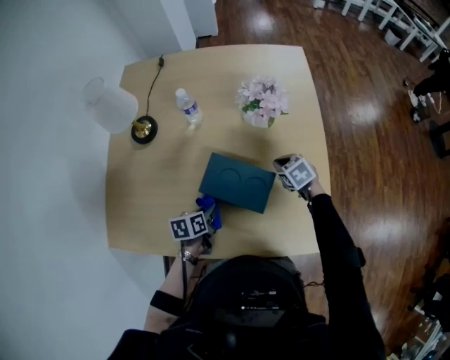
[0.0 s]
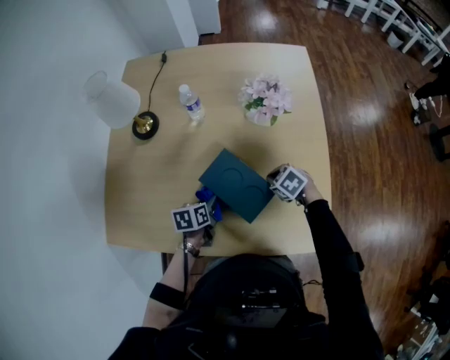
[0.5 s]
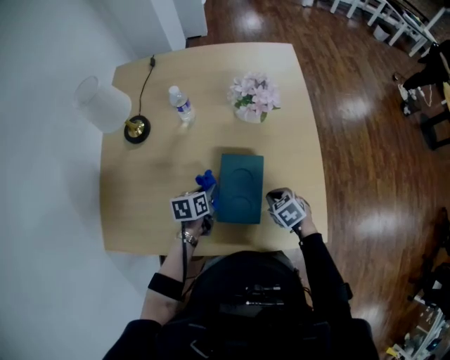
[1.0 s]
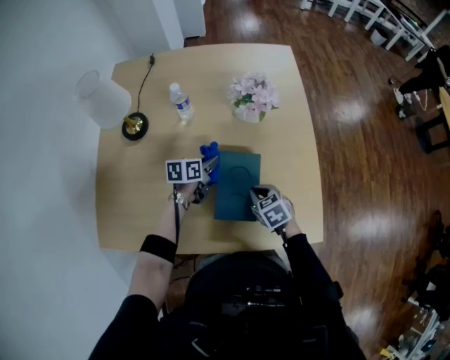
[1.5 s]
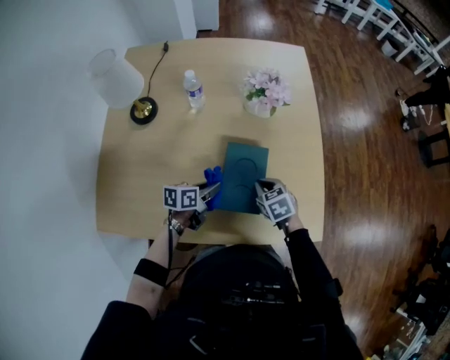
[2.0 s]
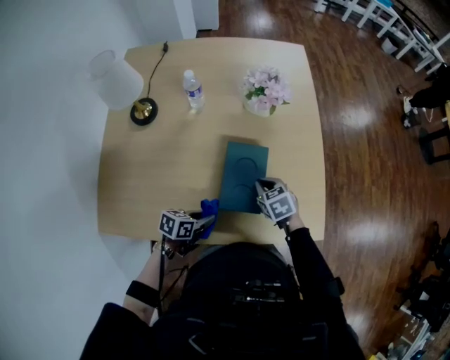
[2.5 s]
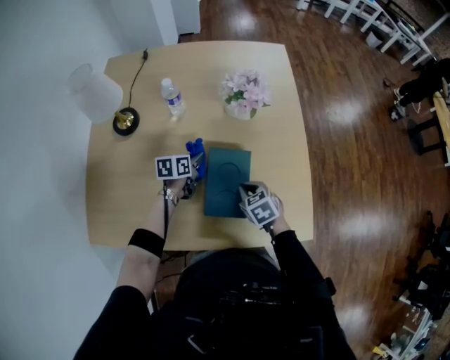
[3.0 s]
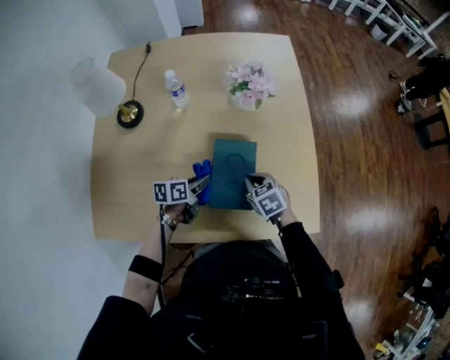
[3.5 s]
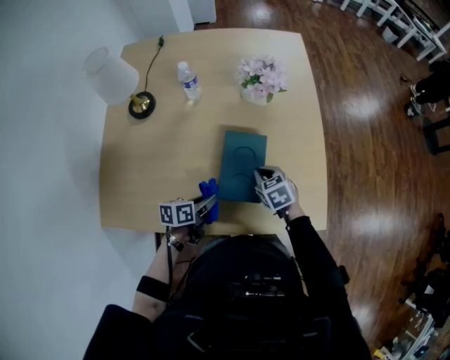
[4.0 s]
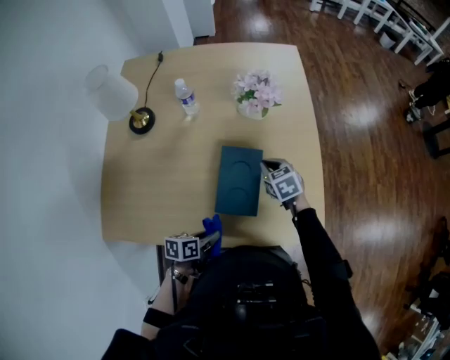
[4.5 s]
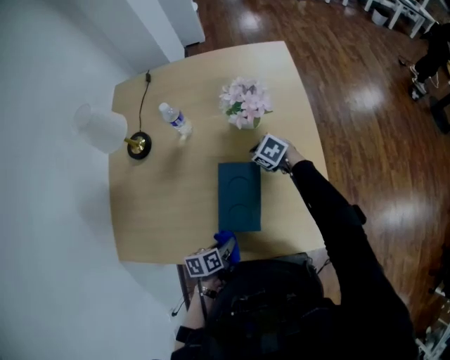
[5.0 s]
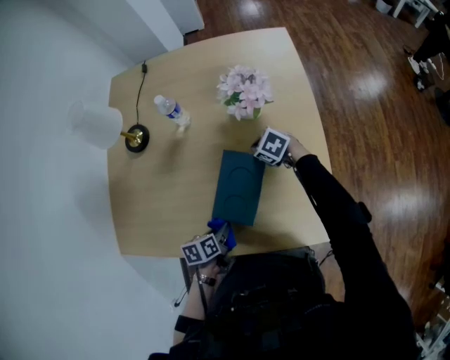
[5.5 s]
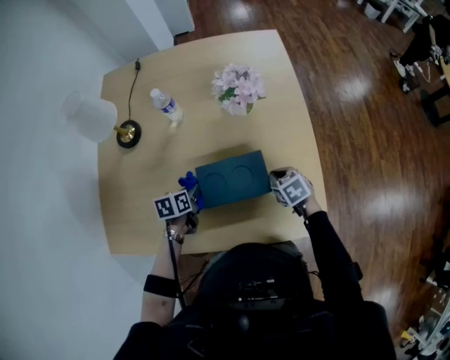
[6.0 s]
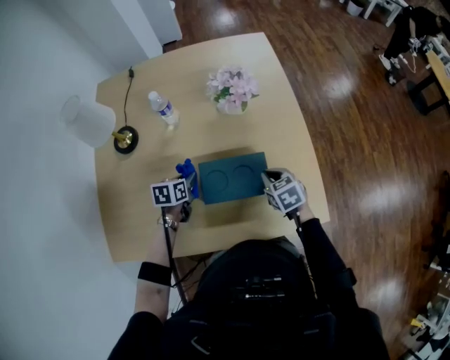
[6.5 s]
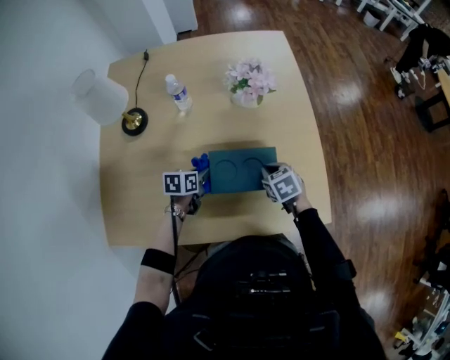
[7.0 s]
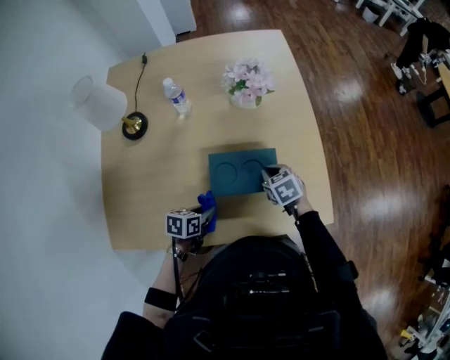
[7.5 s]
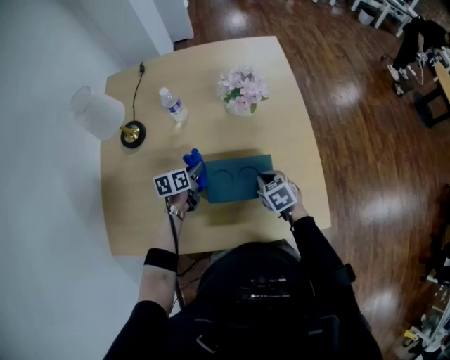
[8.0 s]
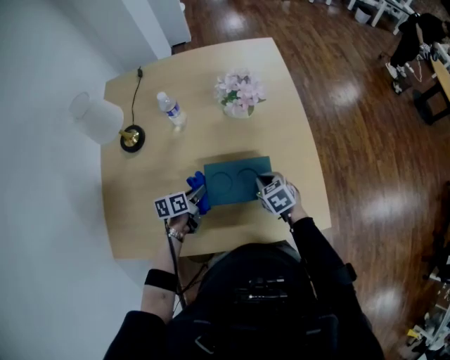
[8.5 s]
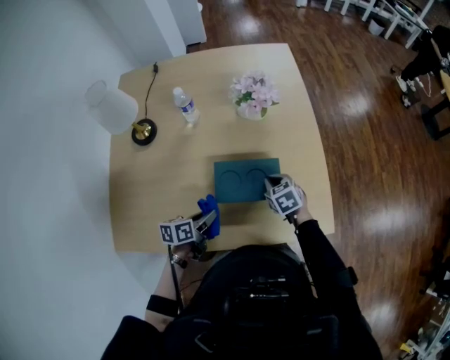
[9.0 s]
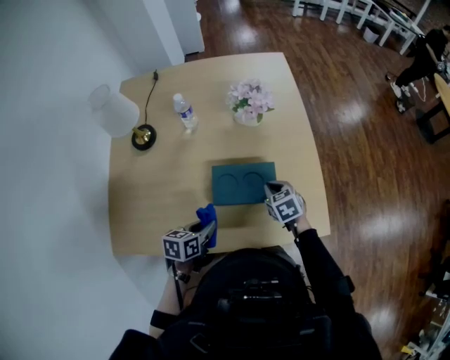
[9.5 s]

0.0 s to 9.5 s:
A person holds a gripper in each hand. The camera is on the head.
0.0 to 2.0 s: The left gripper rotates roughly 20 degrees; the right gripper shifts by about 15 cm.
2.0 to 4.0 s: The left gripper goes forward and backward, roughly 25 cm each way, reversing 2 times.
4.0 to 5.5 s: The right gripper changes place by approximately 15 cm, and changes its angle by roughly 30 degrees, while the left gripper turns by some 20 degrees.
5.5 to 7.5 s: The left gripper changes its angle by roughly 30 degrees; the right gripper ends up some 15 cm from where it was, and changes its angle by approximately 30 degrees.
7.5 to 9.5 s: The left gripper travels upward by roughly 5 cm, and moves some 20 cm forward and comes back.

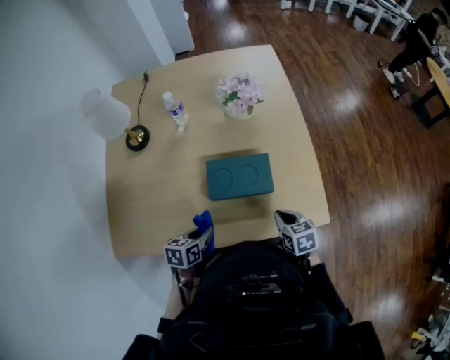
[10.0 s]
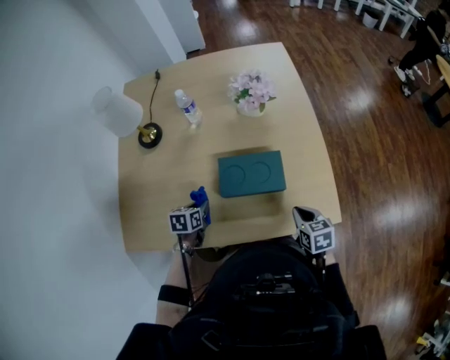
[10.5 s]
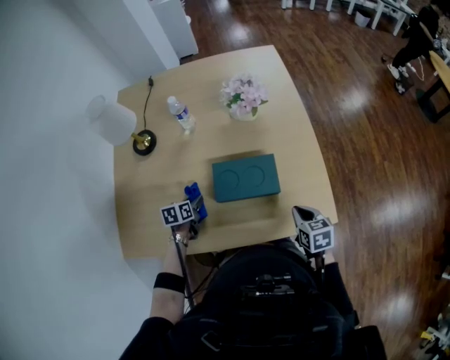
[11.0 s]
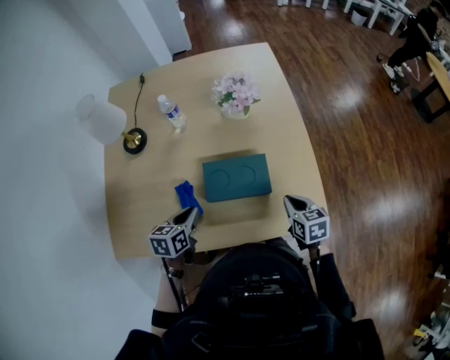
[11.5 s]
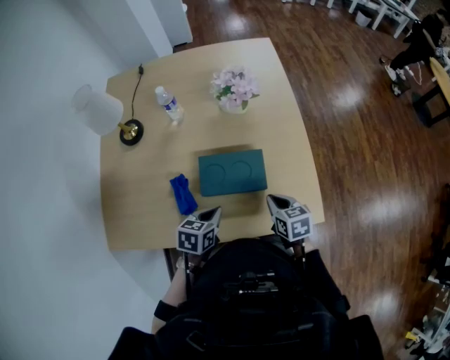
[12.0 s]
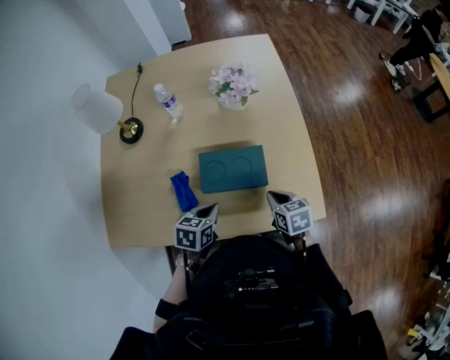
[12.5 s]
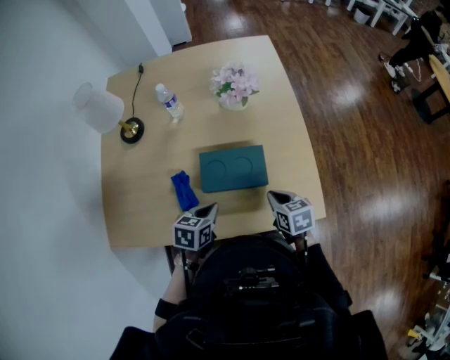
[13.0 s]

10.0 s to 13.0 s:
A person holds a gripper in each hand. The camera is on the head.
10.0 to 11.5 s: The right gripper moves approximately 5 cm; the left gripper travels forward and upward by roughly 10 cm.
11.5 to 13.0 s: The left gripper goes some 10 cm to the right.
